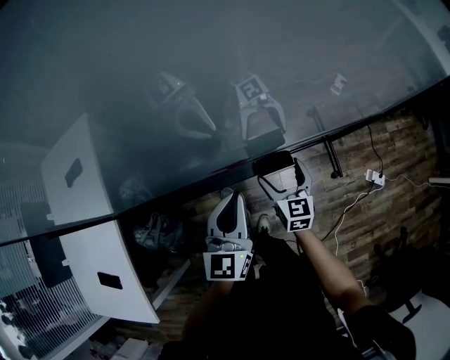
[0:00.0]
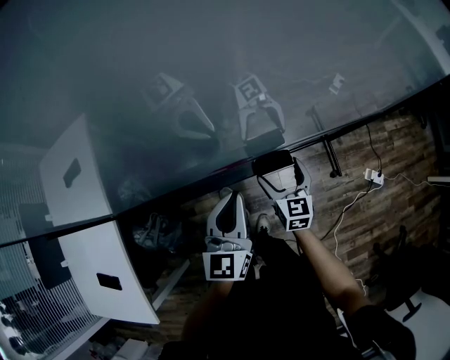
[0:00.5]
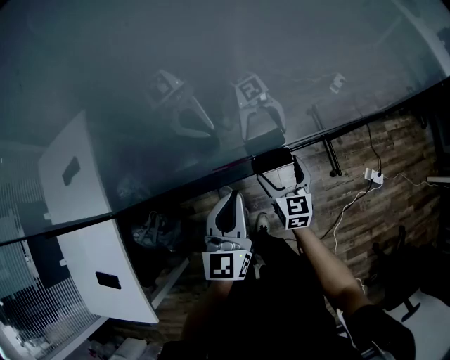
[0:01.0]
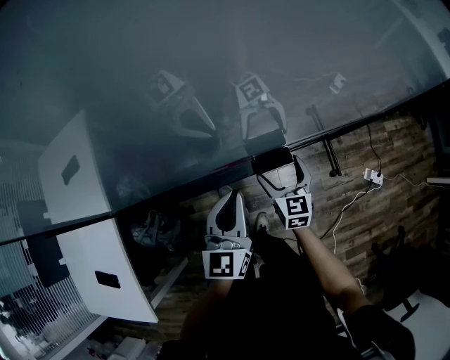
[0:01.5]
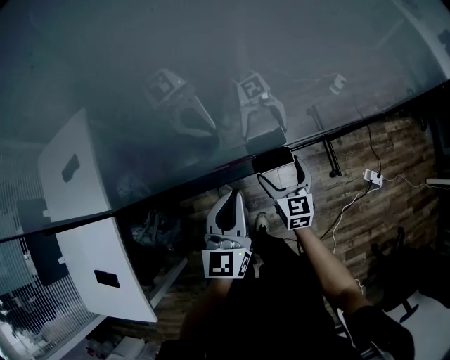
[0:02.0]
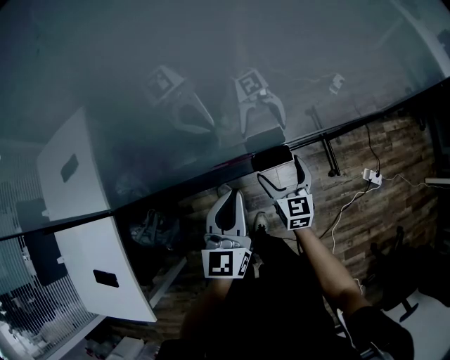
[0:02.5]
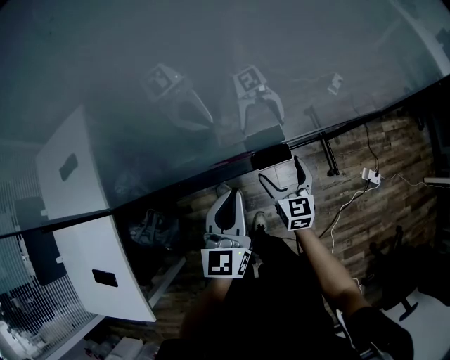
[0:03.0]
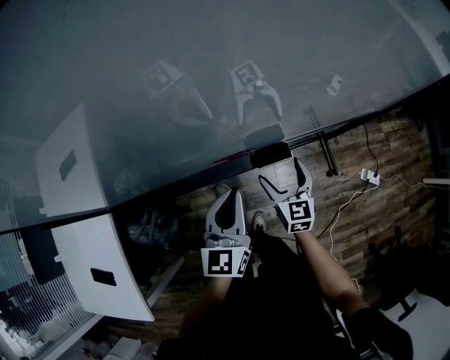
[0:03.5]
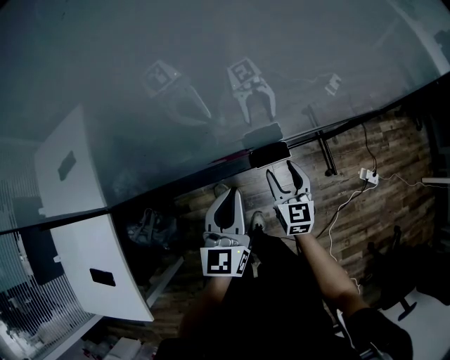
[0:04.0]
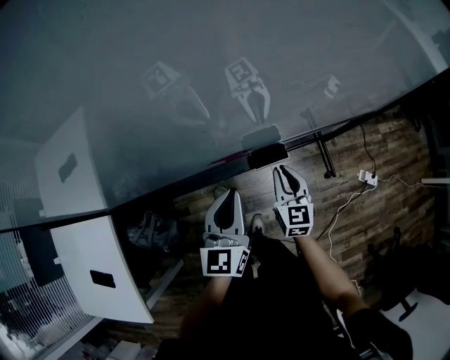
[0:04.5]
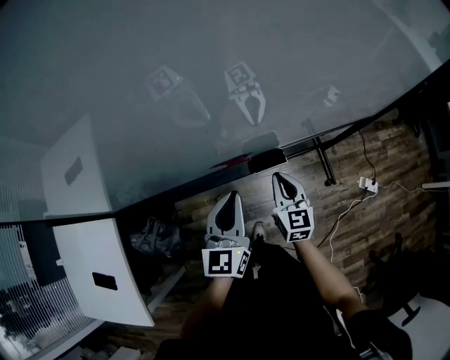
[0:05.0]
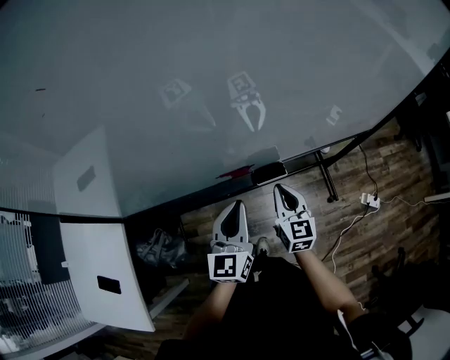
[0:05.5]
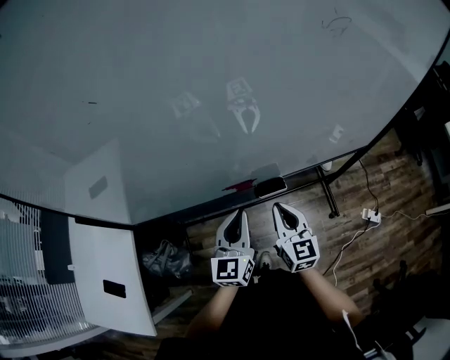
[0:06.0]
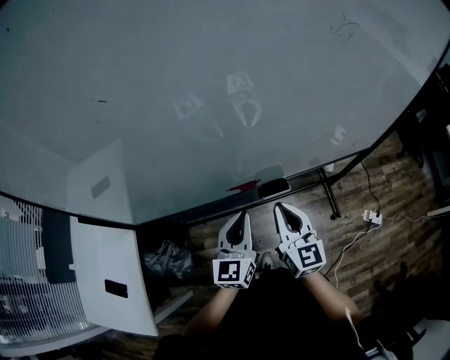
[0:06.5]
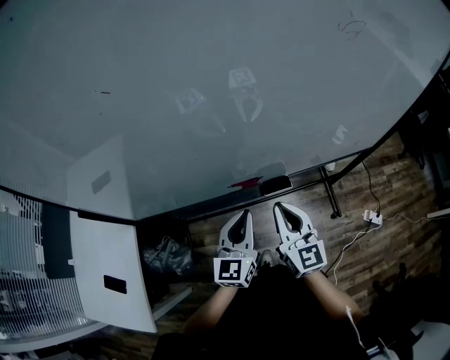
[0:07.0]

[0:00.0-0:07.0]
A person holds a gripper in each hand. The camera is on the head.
0:00.0 to 0:02.0: Both grippers stay put.
0:02.0 to 0:03.5: The grippers stay close to where they were, moving slightly.
0:03.5 to 0:05.0: The right gripper closes up.
0:05.0 to 0:07.0: The right gripper is displaced upward by some 15 cm, and changes its angle by some 20 degrees.

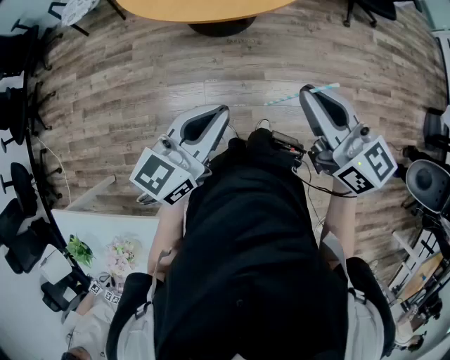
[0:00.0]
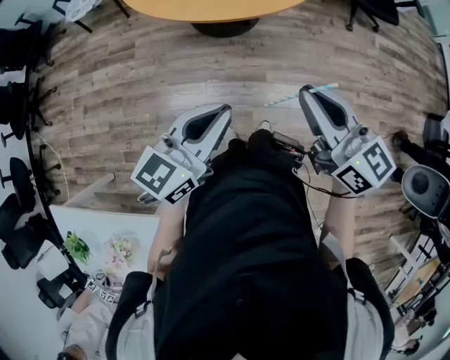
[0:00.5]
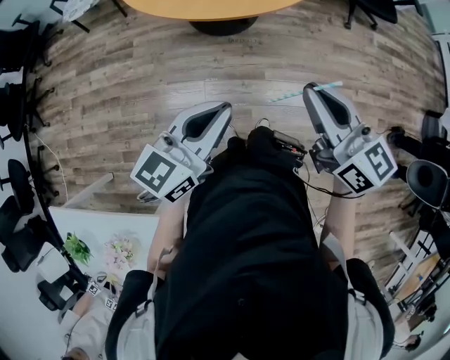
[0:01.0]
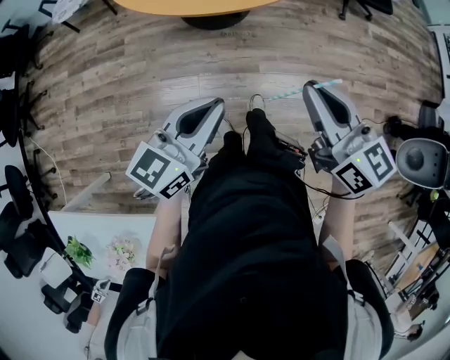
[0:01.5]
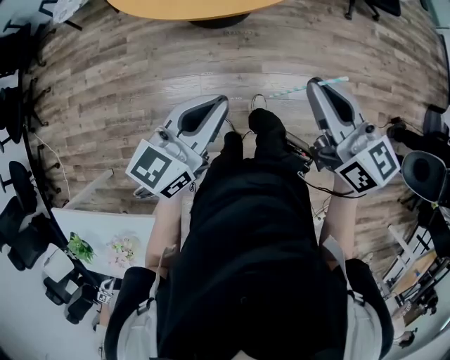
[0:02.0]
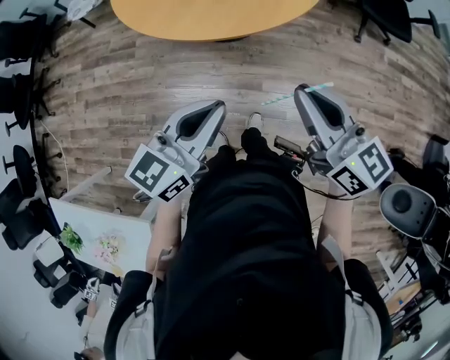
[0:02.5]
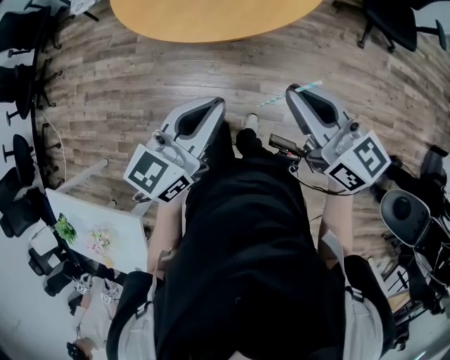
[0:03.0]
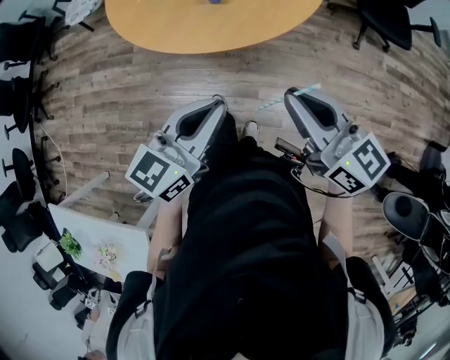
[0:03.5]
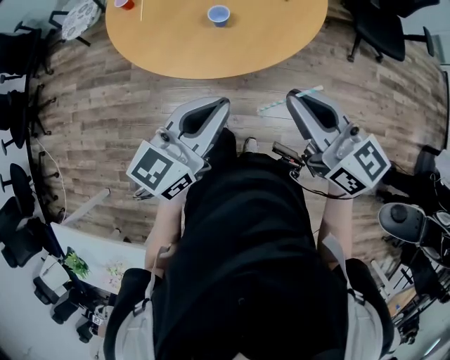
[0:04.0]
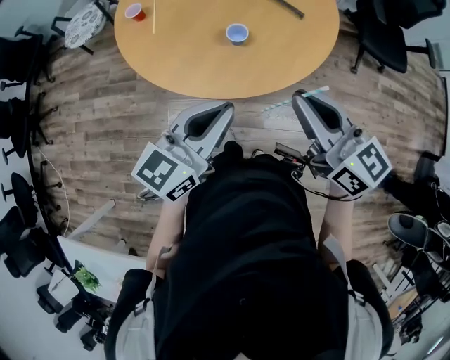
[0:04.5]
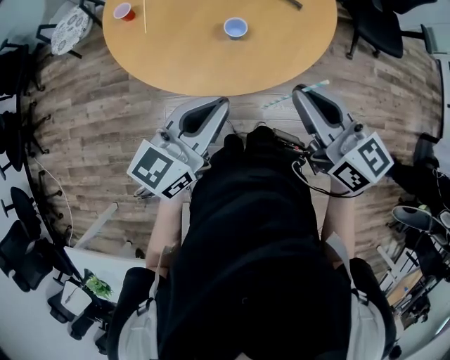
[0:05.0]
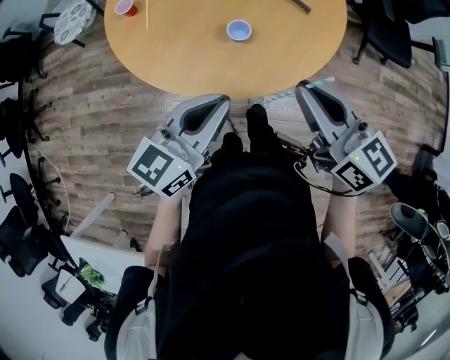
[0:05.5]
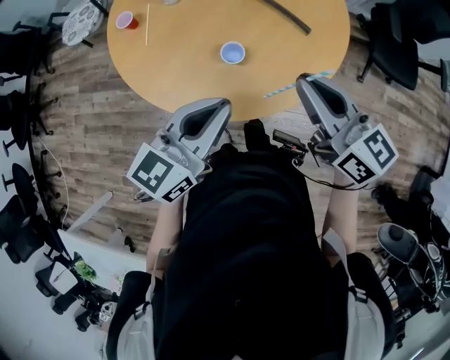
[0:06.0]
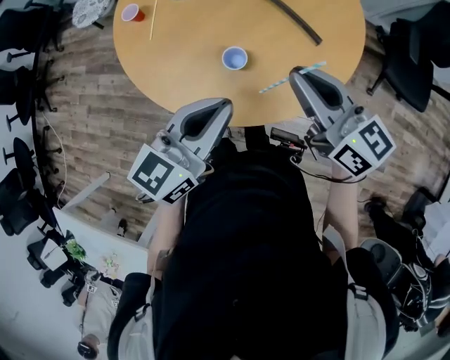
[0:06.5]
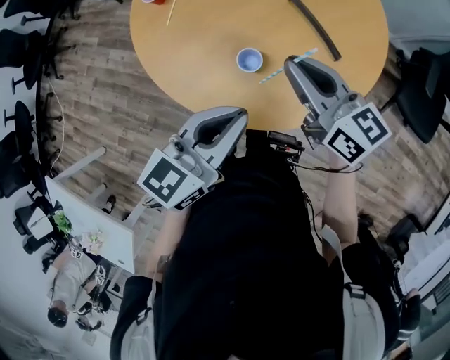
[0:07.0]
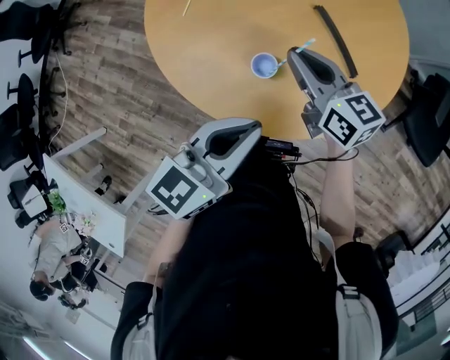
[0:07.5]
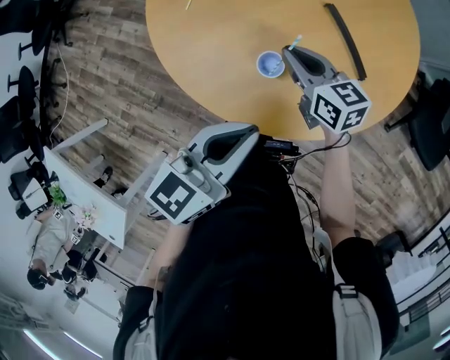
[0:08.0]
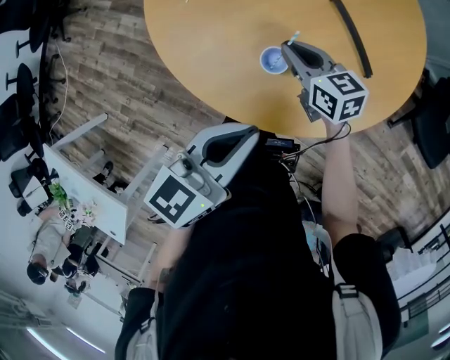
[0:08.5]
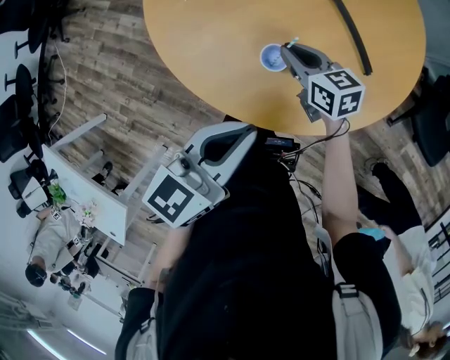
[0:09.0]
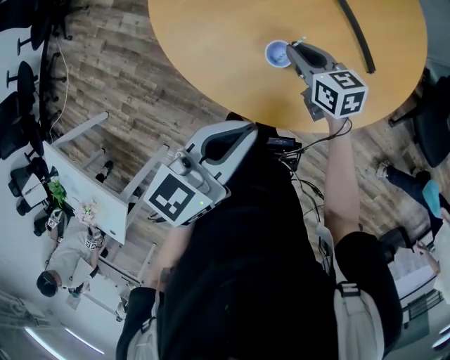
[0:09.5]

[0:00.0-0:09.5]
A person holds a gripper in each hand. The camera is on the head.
0:00.0 to 0:02.0: Both grippers move forward, about 5 cm.
0:02.0 to 0:04.0: The grippers both shift forward by about 20 cm.
0:04.0 to 0:05.5: The grippers both shift forward and to the left by some 15 cm.
0:05.5 to 0:07.5: The left gripper is displaced forward and to the right by roughly 15 cm, and changes its angle by some 20 degrees. Meanwhile the right gripper is displaced forward and downward by approximately 30 cm, and turns by about 20 degrees.
0:07.5 to 0:09.5: The right gripper moves downward, about 15 cm.

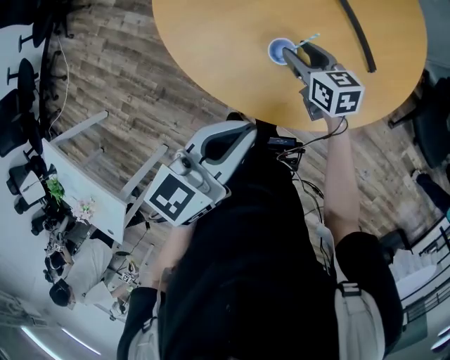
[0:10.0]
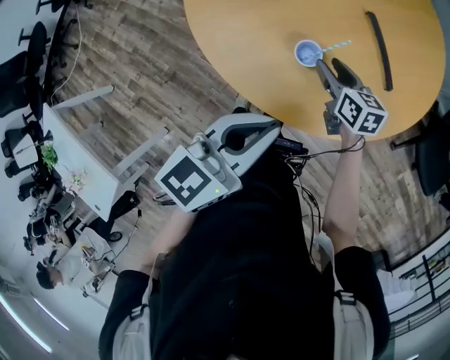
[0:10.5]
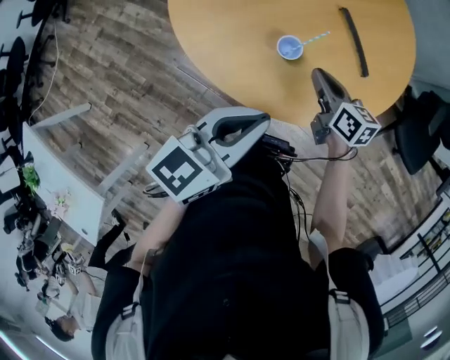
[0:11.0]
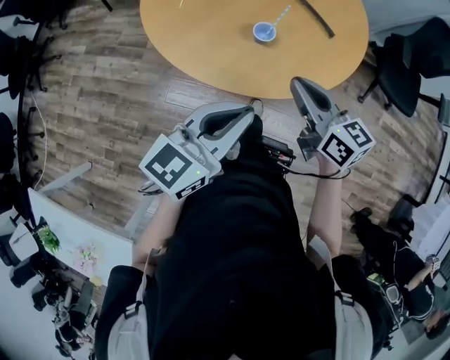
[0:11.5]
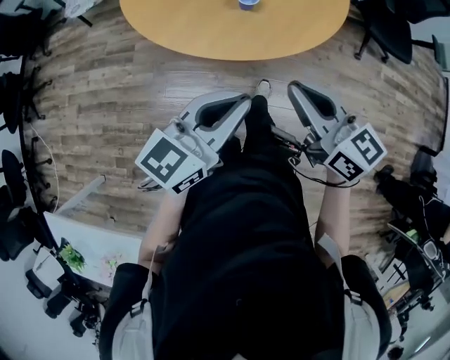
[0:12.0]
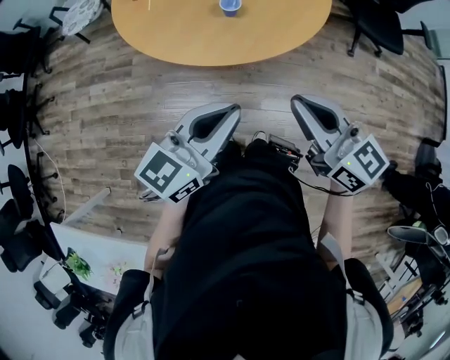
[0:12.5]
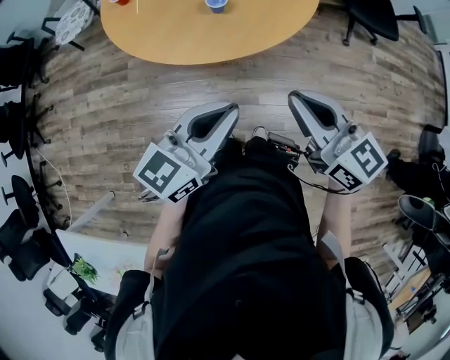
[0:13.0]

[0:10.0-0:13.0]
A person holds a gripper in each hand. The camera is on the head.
0:10.0 to 0:11.5: The left gripper travels backward and to the left by some 15 cm, and rotates roughly 20 degrees; the right gripper is displaced backward and upward by about 30 cm, rotates roughly 20 degrees, and closes up.
0:11.5 to 0:13.0: The left gripper travels backward by approximately 15 cm. The right gripper heads backward, covering some 20 cm.

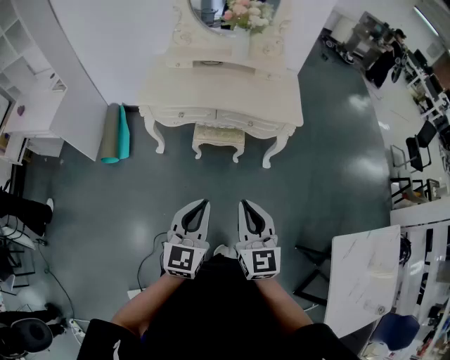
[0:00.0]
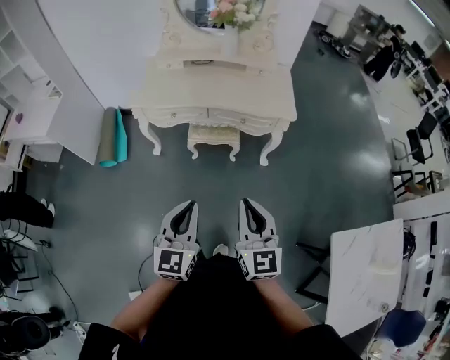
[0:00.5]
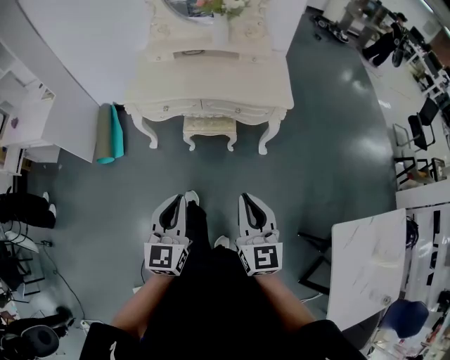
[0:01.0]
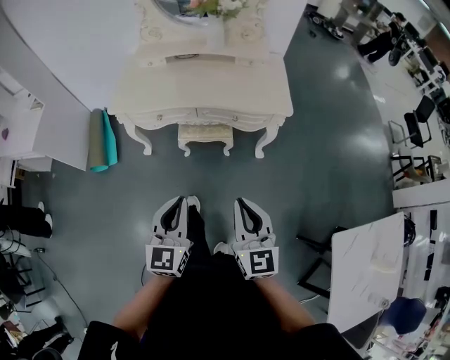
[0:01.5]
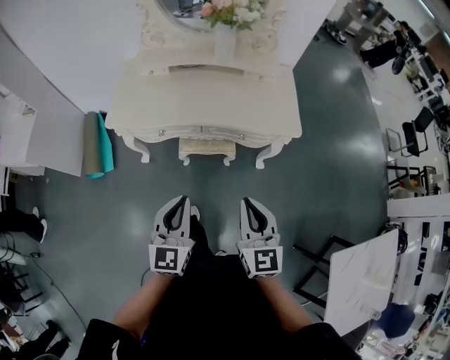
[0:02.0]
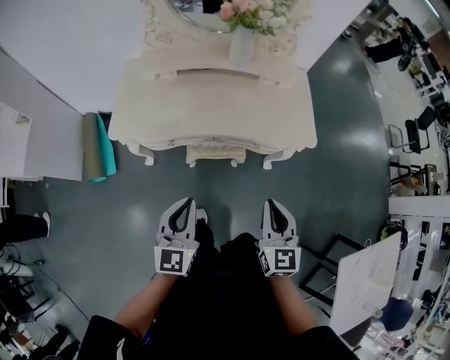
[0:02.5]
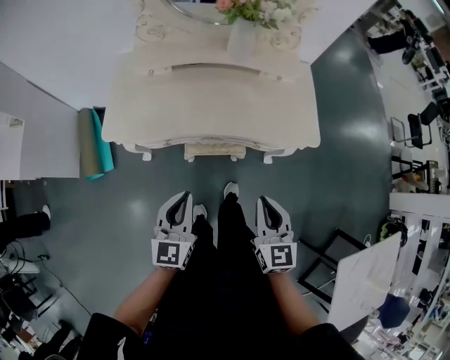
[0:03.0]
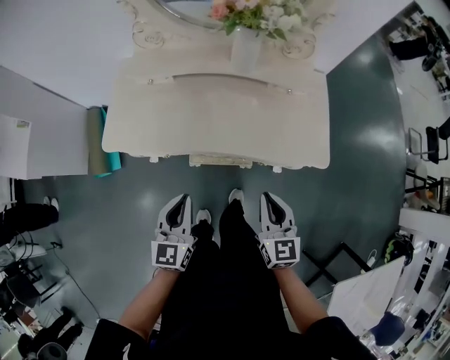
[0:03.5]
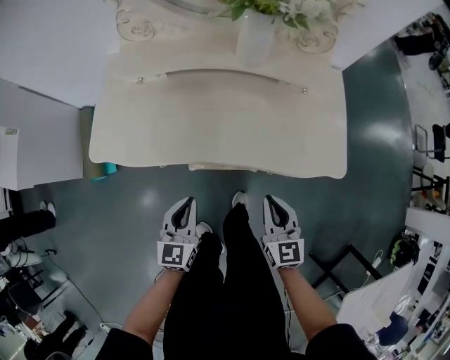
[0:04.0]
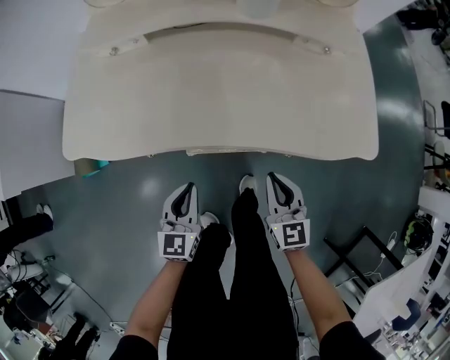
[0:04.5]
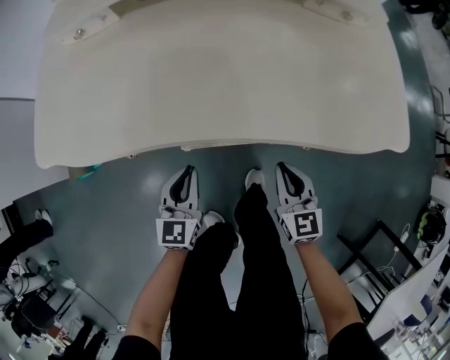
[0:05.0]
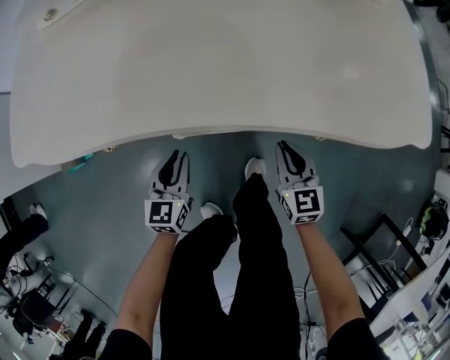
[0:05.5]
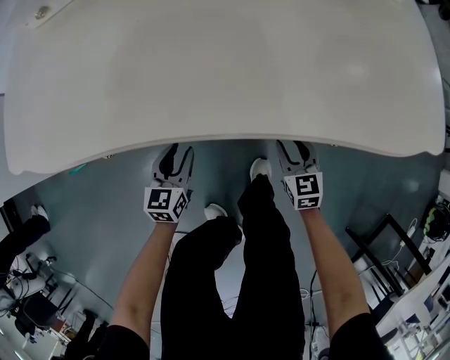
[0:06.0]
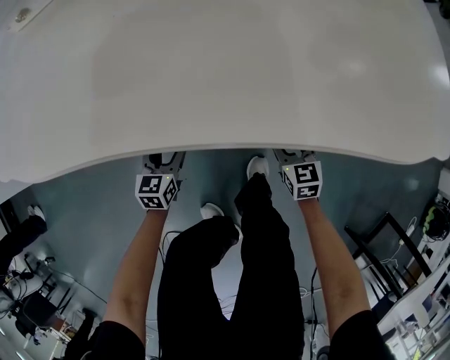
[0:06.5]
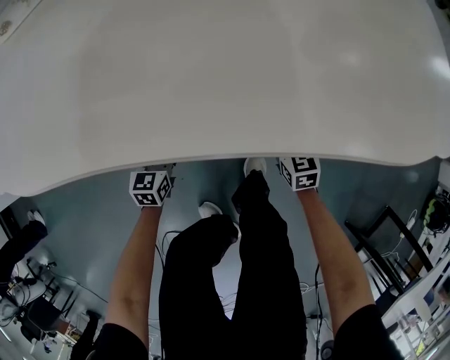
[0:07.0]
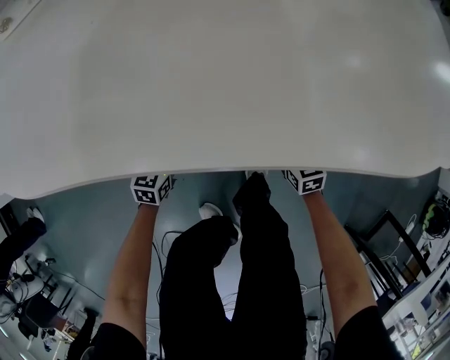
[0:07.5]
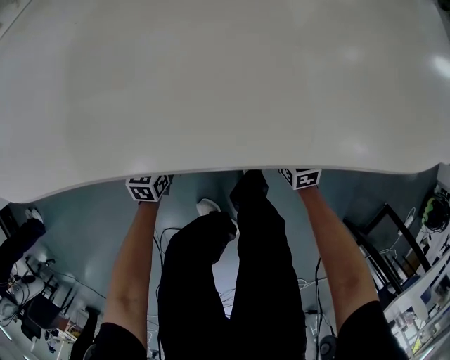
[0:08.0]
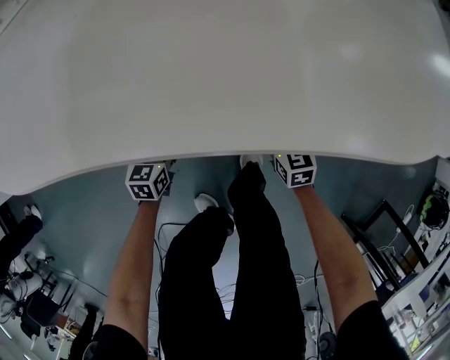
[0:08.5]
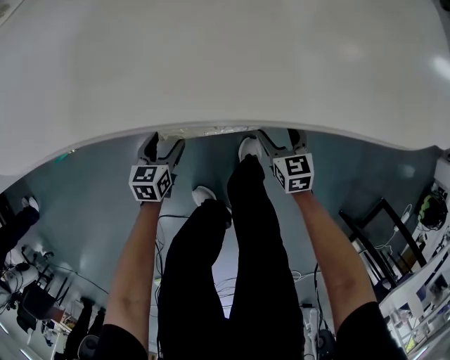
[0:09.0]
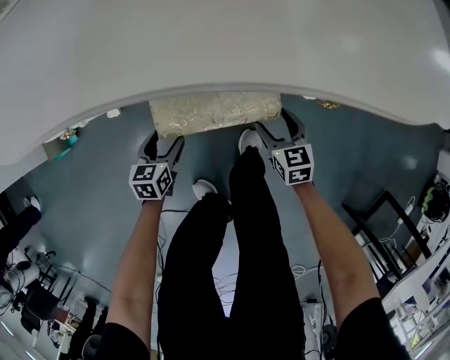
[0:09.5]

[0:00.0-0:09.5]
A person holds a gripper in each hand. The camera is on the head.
0:00.0 to 0:02.0: The two grippers go roughly 20 cm forward.
0:02.0 to 0:04.0: Both grippers travel together forward and downward, some 30 cm.
0:04.0 to 0:05.5: The grippers both shift downward by roughly 35 cm.
0:05.5 to 0:07.5: Both grippers move downward, roughly 15 cm. The right gripper opens up. Meanwhile the left gripper opens.
0:07.5 to 0:09.5: Both grippers travel together backward, some 10 cm.
